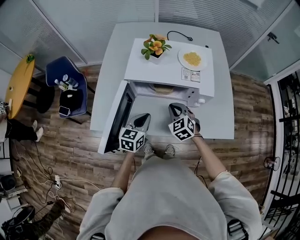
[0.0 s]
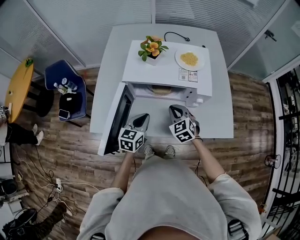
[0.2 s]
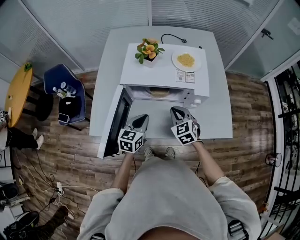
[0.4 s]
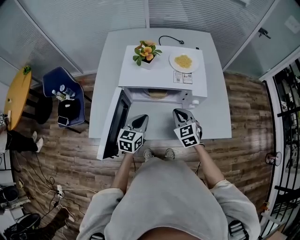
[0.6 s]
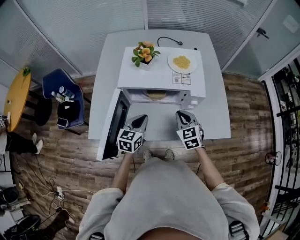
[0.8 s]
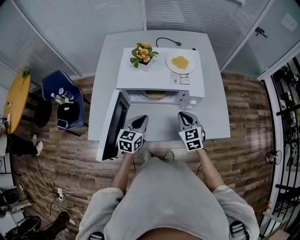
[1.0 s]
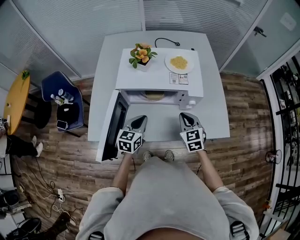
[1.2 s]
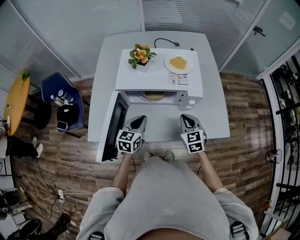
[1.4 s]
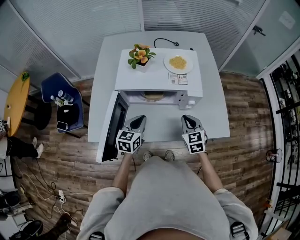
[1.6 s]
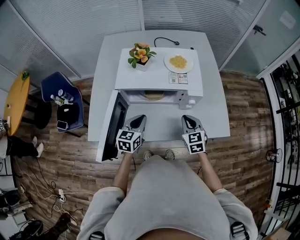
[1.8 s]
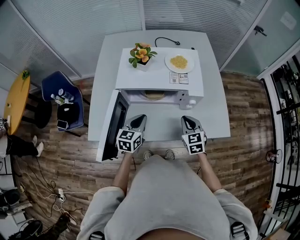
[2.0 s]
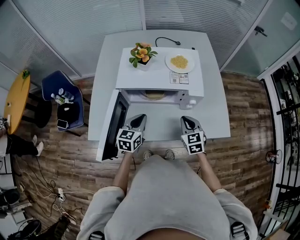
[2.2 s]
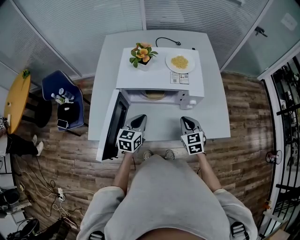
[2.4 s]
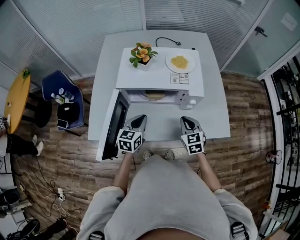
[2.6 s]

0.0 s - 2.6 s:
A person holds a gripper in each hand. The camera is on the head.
0.0 s - 1.2 s: The right gripper shifts approximately 10 cm to the right, and changes its angle by approximately 20 degrees.
1.2 s - 2.6 s: The grippers move only a little.

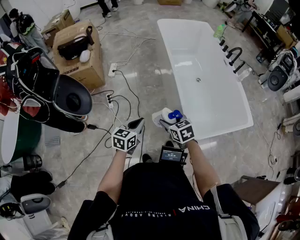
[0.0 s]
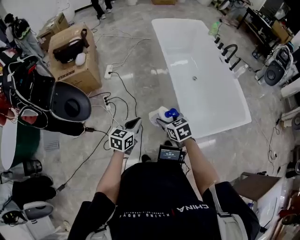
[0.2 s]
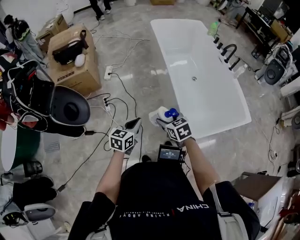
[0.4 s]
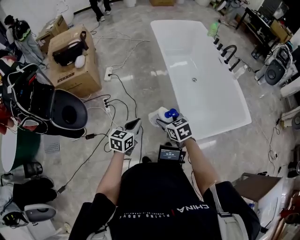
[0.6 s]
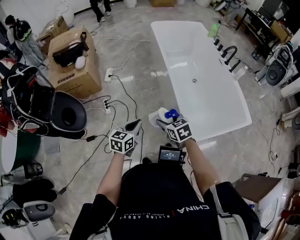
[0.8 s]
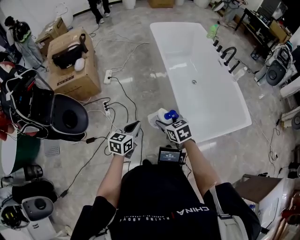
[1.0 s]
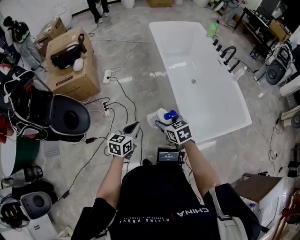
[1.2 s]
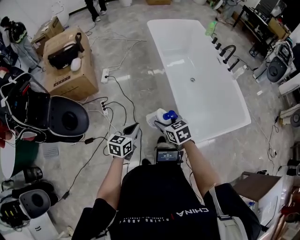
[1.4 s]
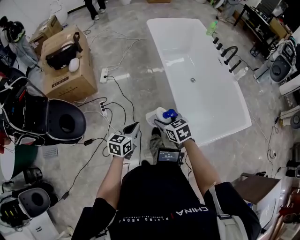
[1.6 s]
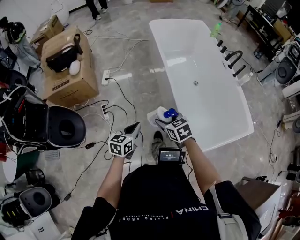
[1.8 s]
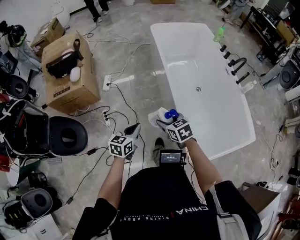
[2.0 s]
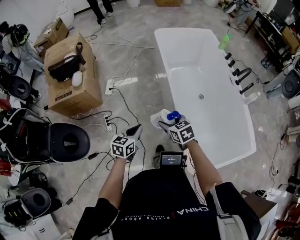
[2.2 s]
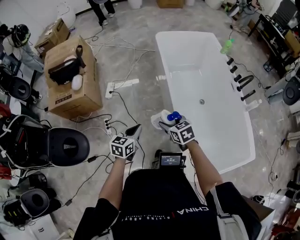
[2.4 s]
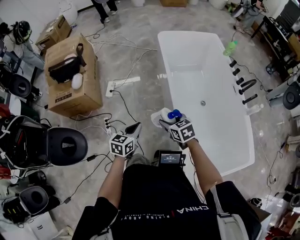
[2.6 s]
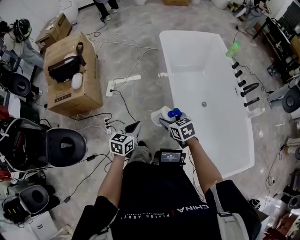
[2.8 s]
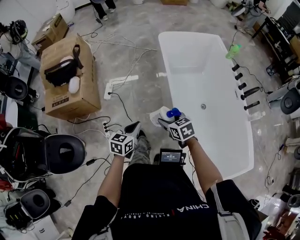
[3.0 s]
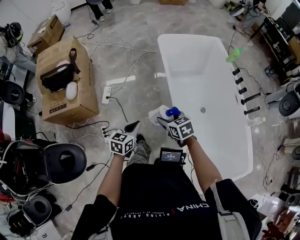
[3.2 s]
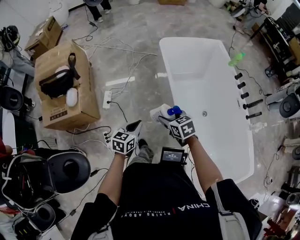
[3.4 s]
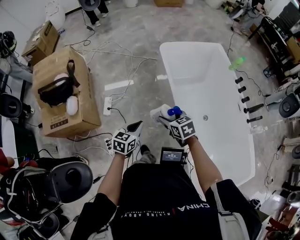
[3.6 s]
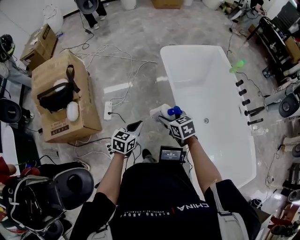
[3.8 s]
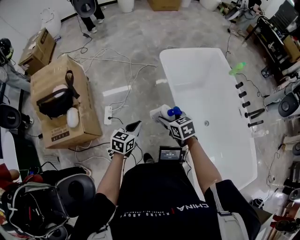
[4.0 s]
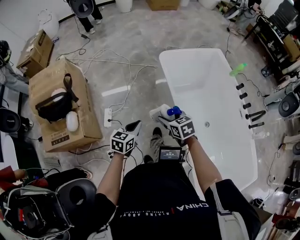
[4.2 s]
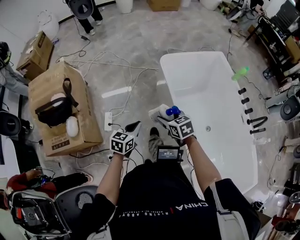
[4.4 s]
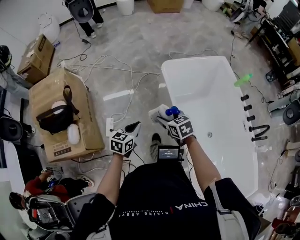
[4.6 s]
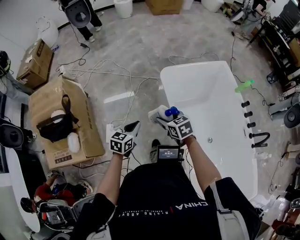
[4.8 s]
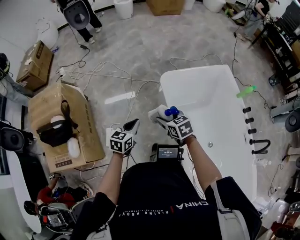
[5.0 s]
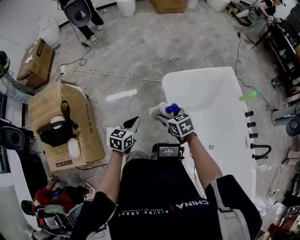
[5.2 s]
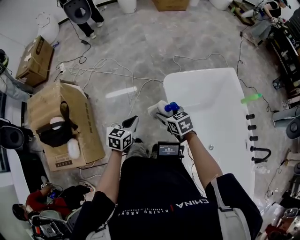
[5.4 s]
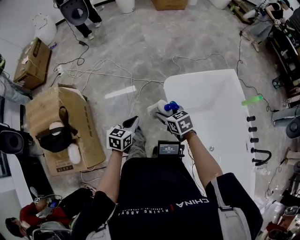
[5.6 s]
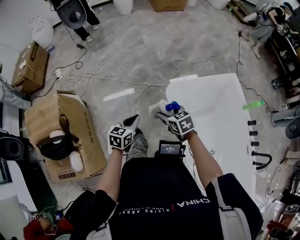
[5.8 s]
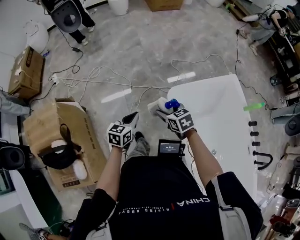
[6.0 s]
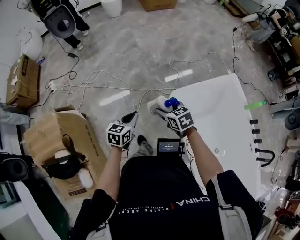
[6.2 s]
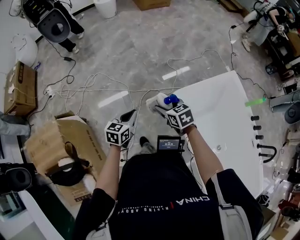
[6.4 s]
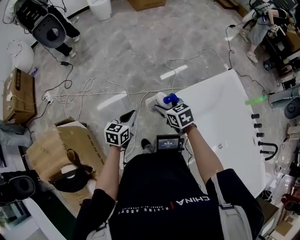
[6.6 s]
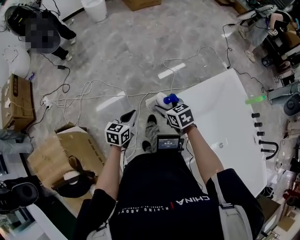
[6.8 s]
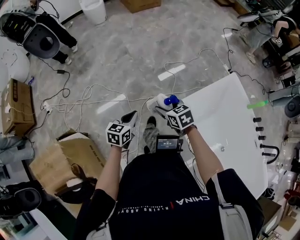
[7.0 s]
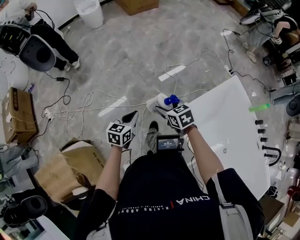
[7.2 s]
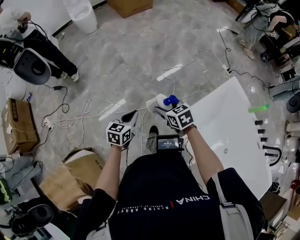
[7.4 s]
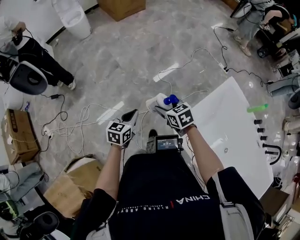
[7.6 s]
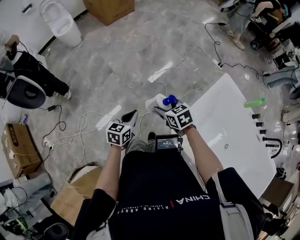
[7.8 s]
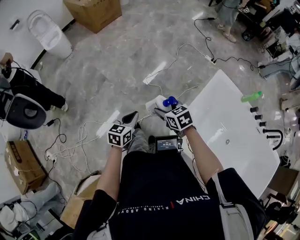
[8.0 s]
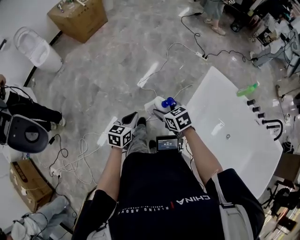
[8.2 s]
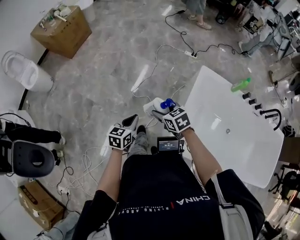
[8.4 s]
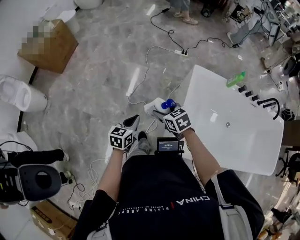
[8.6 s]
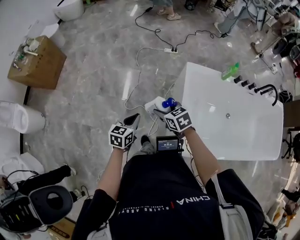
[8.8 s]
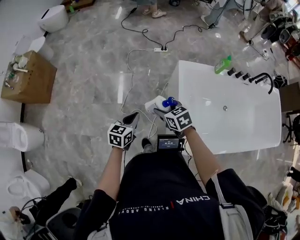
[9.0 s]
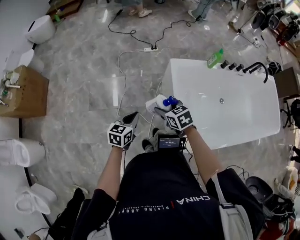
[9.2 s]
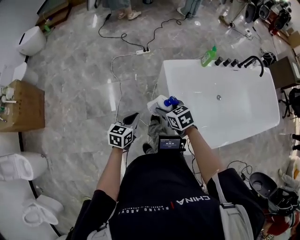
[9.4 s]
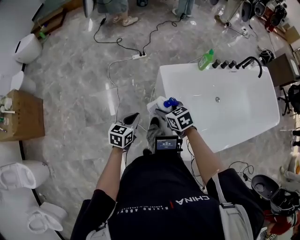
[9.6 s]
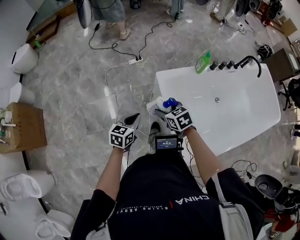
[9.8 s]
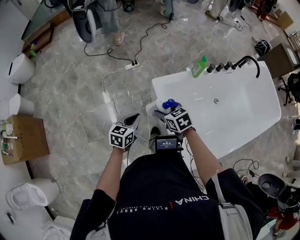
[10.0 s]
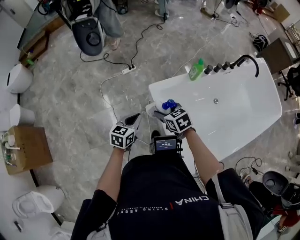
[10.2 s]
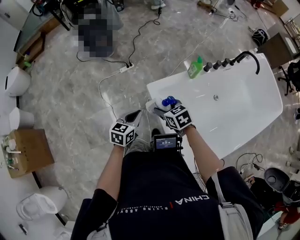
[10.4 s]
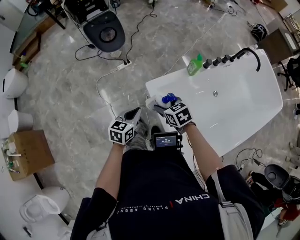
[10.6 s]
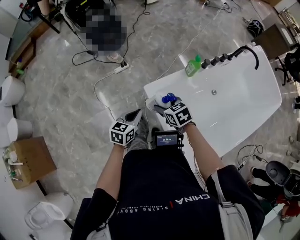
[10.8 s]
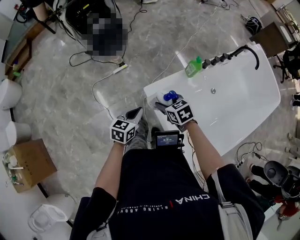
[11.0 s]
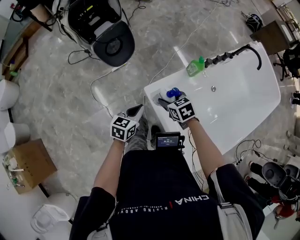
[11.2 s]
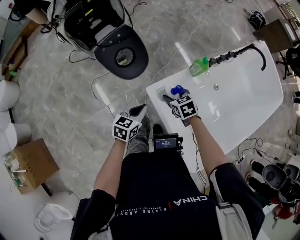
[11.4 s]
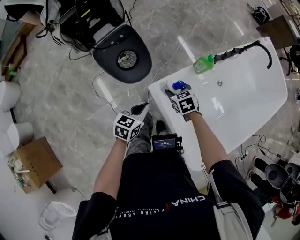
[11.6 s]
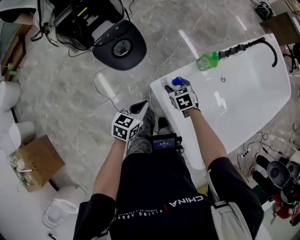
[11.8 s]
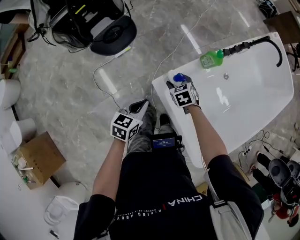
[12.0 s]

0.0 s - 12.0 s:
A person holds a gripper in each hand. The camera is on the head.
0.0 s - 1.6 s: The two grippers go some 10 cm forward.
1.6 s - 3.0 s: The grippers both shift forward by about 35 cm.
3.0 s - 4.4 s: The grippers both shift forward by approximately 35 cm.
4.4 s - 6.0 s: The two grippers travel together, forward, some 40 cm.
6.0 s - 7.6 s: Both grippers move forward, some 35 cm. The left gripper swivels roughly 20 degrees.
7.6 s - 9.0 s: The left gripper changes place by some 40 cm, and rotates about 50 degrees; the right gripper shifts by some 30 cm, and swivels about 50 degrees.
9.0 s - 10.4 s: The two grippers go some 35 cm forward and to the right. The left gripper turns by roughly 30 degrees. The right gripper turns by approximately 20 degrees.
10.4 s - 12.0 s: The left gripper shifts approximately 15 cm forward and downward; the right gripper goes approximately 25 cm forward and downward, and changes its angle by roughly 20 degrees.

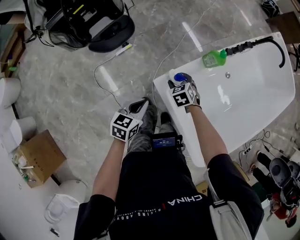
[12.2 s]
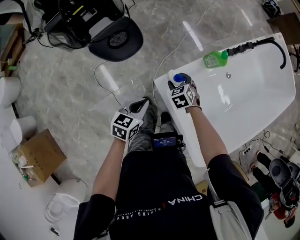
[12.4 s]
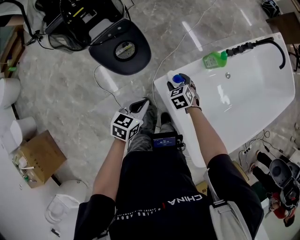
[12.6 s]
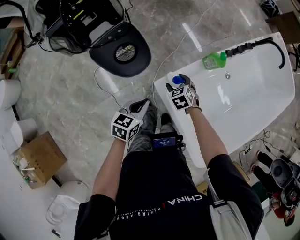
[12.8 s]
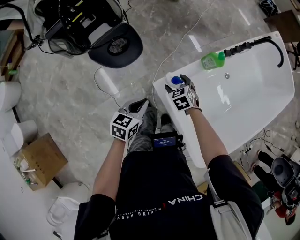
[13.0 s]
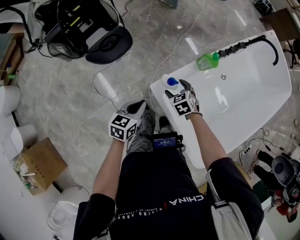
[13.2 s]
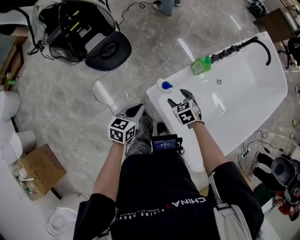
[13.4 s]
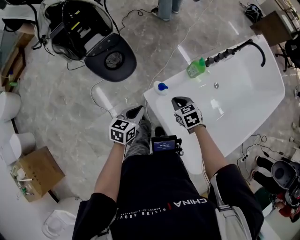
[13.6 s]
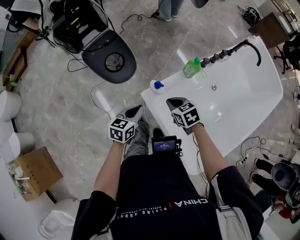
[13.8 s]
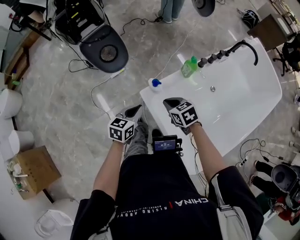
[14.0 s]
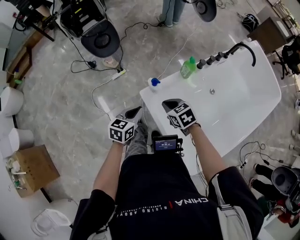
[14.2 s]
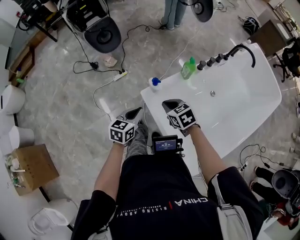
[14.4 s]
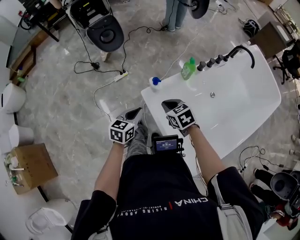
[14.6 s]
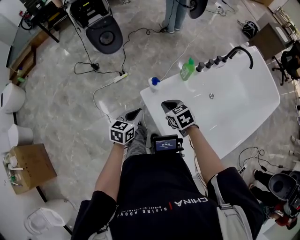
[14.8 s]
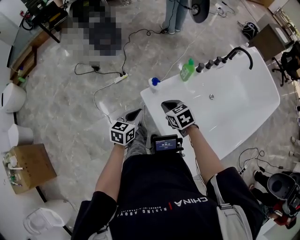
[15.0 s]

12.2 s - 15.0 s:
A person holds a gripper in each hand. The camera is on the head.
12.2 s - 13.6 s: The right gripper goes approximately 15 cm upward, backward and to the right, and closes its fingers.
13.6 s - 15.0 s: The left gripper goes roughly 10 cm backward; the right gripper is displaced backward and upward by approximately 15 cm.

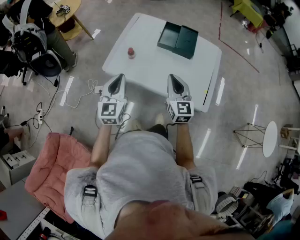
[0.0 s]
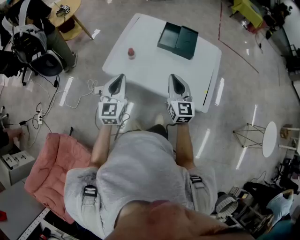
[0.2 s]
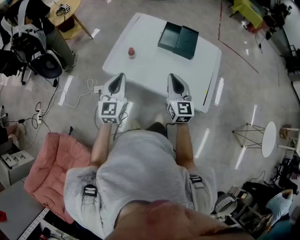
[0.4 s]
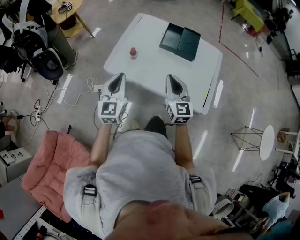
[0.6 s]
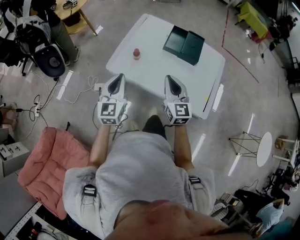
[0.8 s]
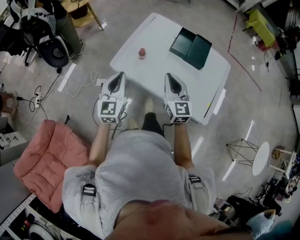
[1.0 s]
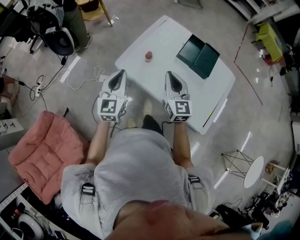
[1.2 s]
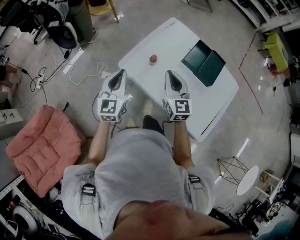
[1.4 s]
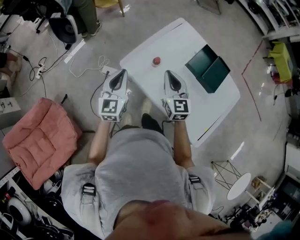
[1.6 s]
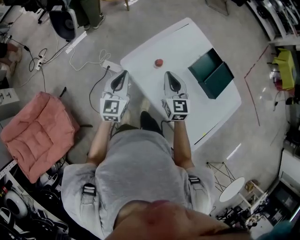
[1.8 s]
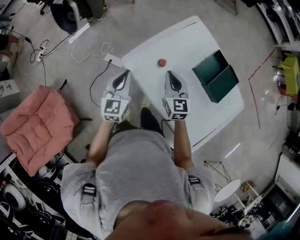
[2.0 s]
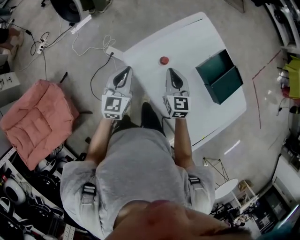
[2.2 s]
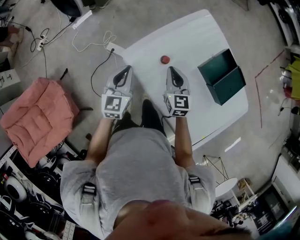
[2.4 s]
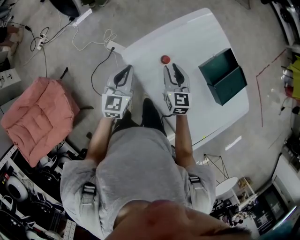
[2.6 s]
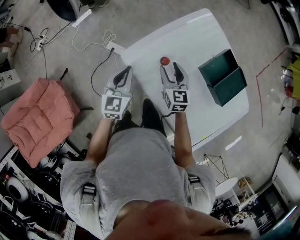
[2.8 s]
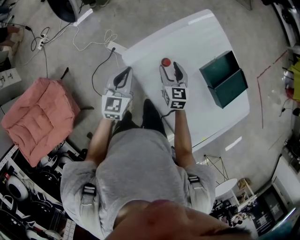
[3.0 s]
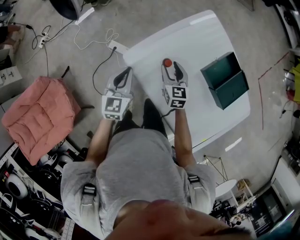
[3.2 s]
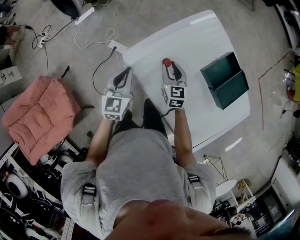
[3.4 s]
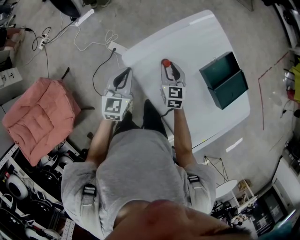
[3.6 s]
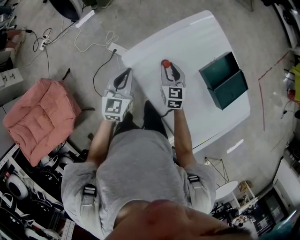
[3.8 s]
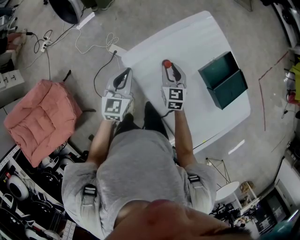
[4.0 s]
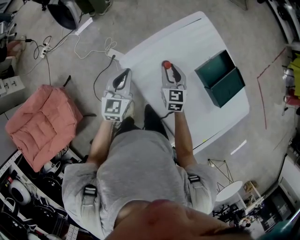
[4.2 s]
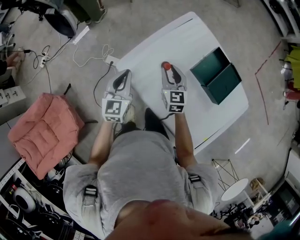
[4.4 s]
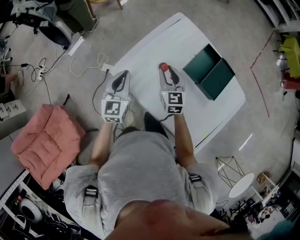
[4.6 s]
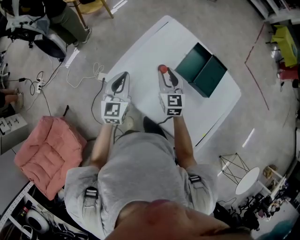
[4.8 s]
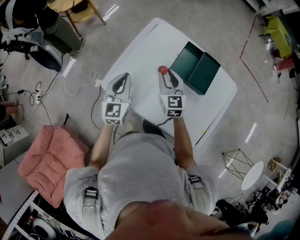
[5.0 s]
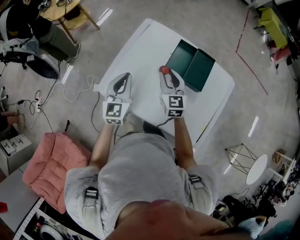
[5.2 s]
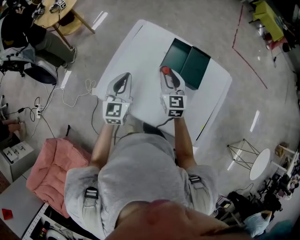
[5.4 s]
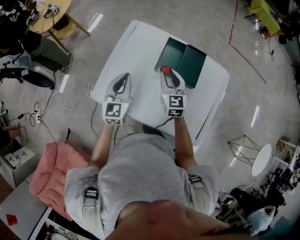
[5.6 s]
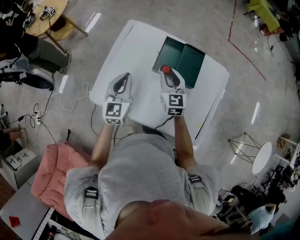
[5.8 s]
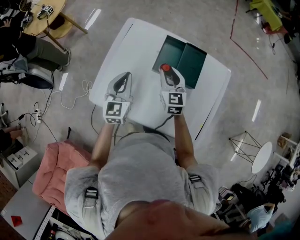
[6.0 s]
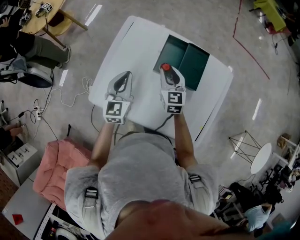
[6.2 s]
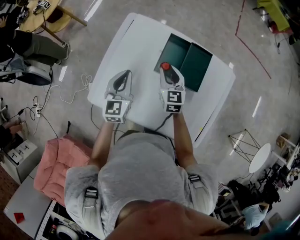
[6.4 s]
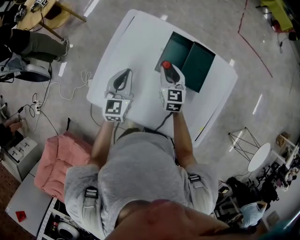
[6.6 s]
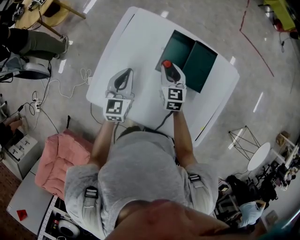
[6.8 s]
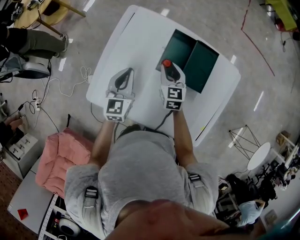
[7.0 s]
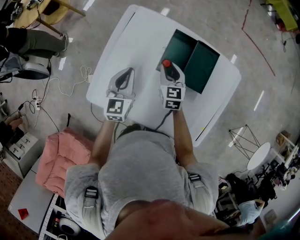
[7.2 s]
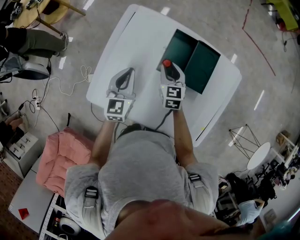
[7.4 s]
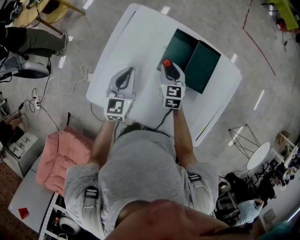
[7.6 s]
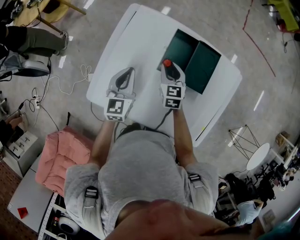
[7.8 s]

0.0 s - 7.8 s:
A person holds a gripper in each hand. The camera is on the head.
0.0 s - 1.6 s: The right gripper travels forward and to the left by about 20 cm, and swivels some 30 degrees. Meanwhile the left gripper shifts some 15 cm forward and to the left, and changes its angle by approximately 20 degrees.
1.6 s - 3.2 s: The left gripper shifts roughly 15 cm downward and forward; the right gripper is displaced downward and forward by some 20 cm, turns by approximately 20 degrees, and opens its fingers.
3.2 s - 4.6 s: The grippers both shift upward and to the right by about 10 cm. The right gripper closes up.
4.6 s - 6.2 s: The left gripper travels to the right and forward by approximately 20 cm, and turns by about 20 degrees. The right gripper shifts roughly 20 cm to the right, and turns by about 20 degrees.
6.2 s - 7.8 s: Both grippers move downward, roughly 10 cm.
